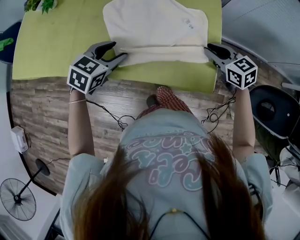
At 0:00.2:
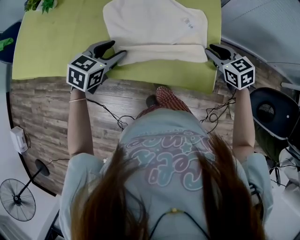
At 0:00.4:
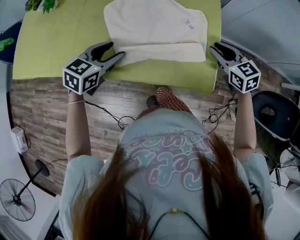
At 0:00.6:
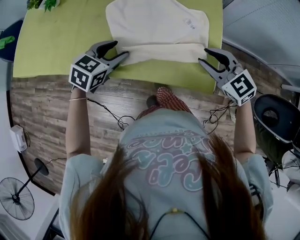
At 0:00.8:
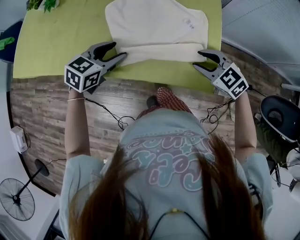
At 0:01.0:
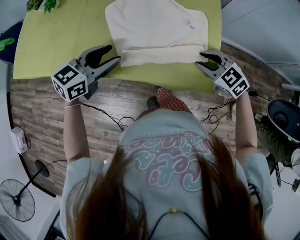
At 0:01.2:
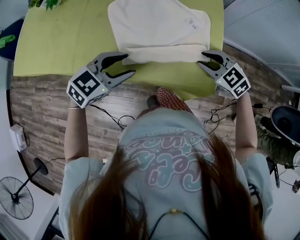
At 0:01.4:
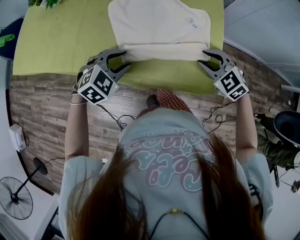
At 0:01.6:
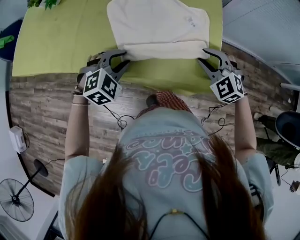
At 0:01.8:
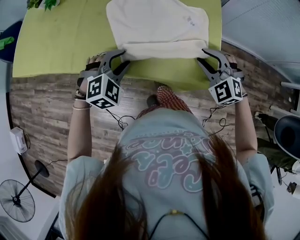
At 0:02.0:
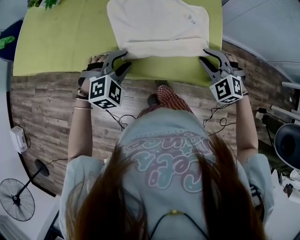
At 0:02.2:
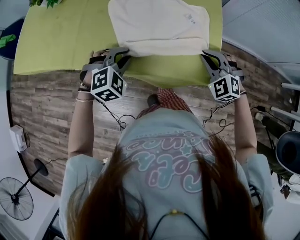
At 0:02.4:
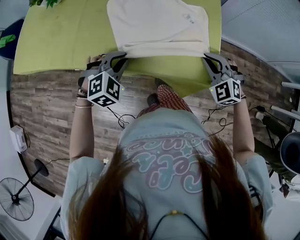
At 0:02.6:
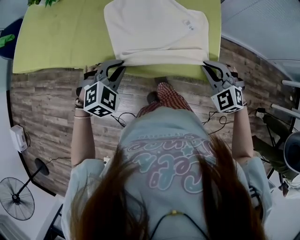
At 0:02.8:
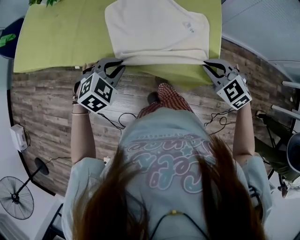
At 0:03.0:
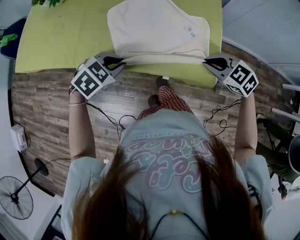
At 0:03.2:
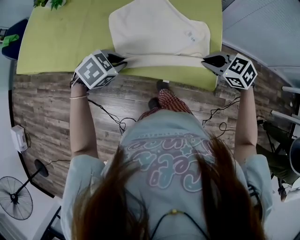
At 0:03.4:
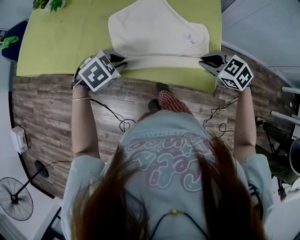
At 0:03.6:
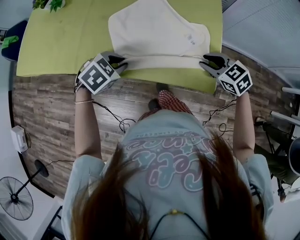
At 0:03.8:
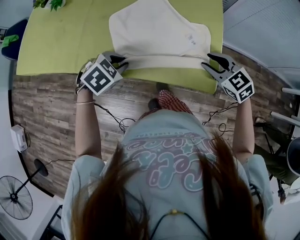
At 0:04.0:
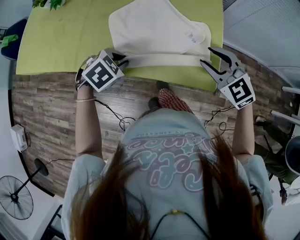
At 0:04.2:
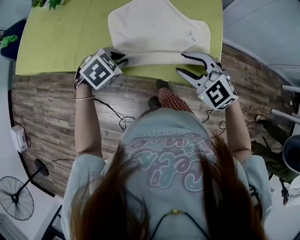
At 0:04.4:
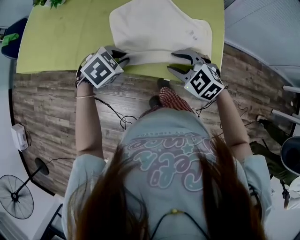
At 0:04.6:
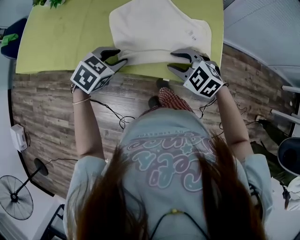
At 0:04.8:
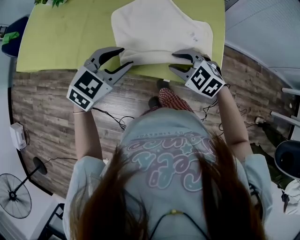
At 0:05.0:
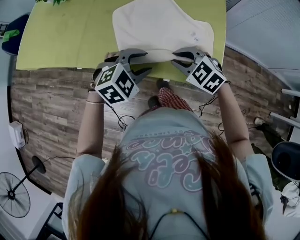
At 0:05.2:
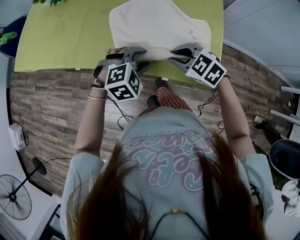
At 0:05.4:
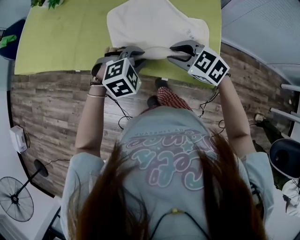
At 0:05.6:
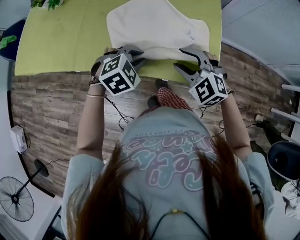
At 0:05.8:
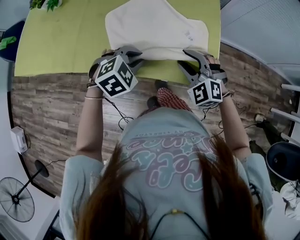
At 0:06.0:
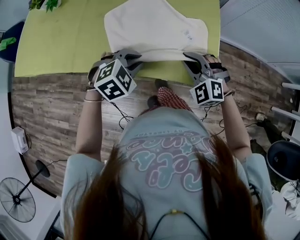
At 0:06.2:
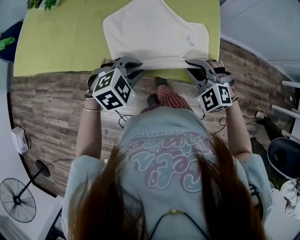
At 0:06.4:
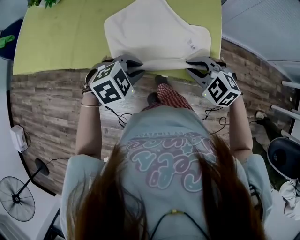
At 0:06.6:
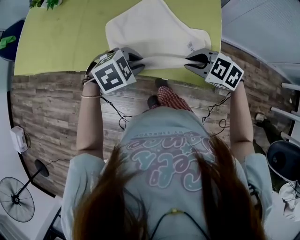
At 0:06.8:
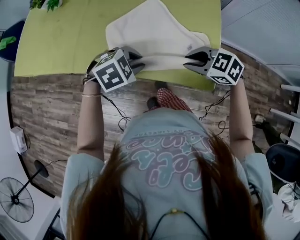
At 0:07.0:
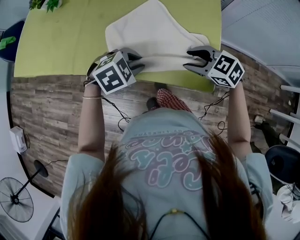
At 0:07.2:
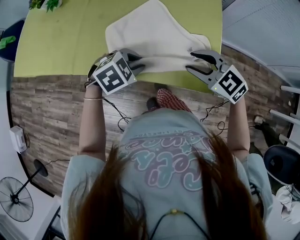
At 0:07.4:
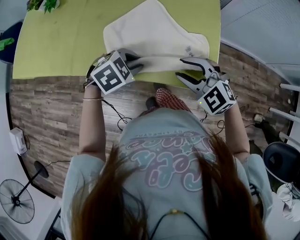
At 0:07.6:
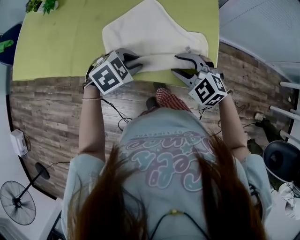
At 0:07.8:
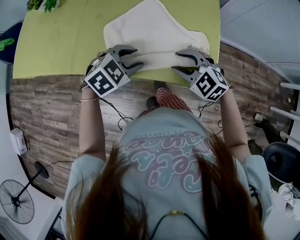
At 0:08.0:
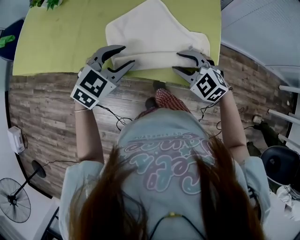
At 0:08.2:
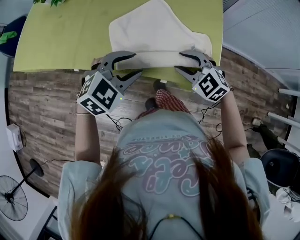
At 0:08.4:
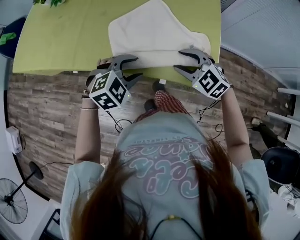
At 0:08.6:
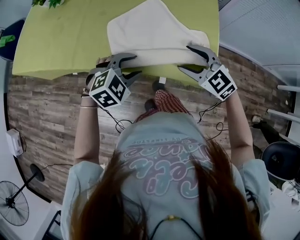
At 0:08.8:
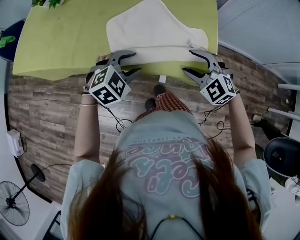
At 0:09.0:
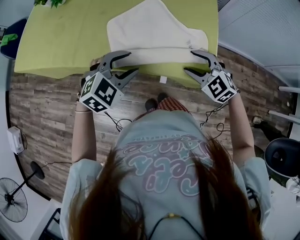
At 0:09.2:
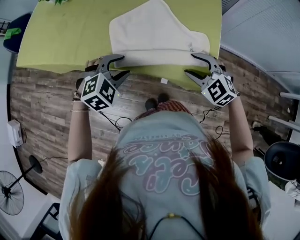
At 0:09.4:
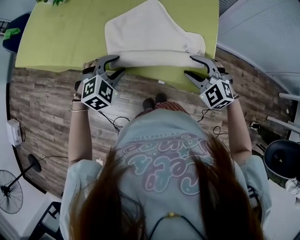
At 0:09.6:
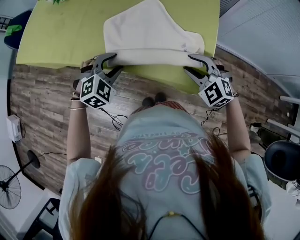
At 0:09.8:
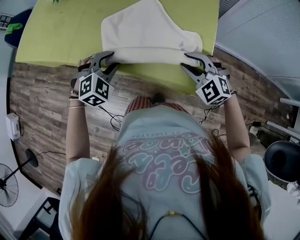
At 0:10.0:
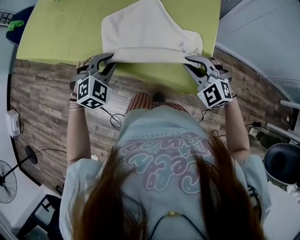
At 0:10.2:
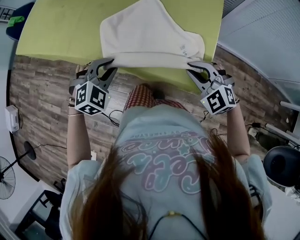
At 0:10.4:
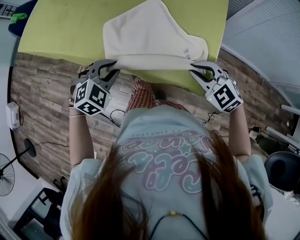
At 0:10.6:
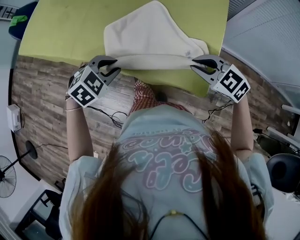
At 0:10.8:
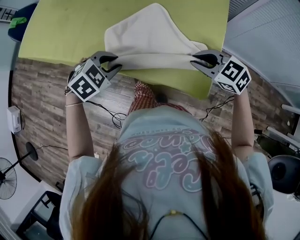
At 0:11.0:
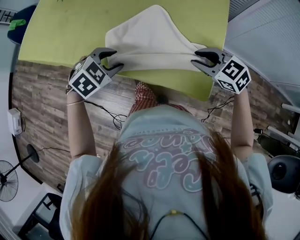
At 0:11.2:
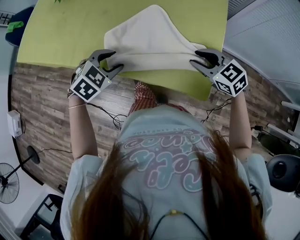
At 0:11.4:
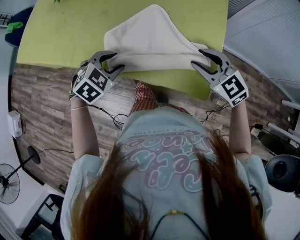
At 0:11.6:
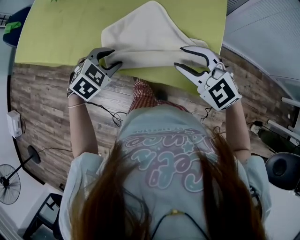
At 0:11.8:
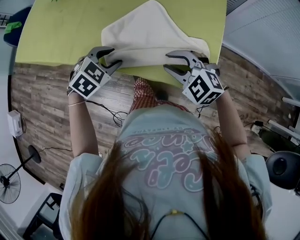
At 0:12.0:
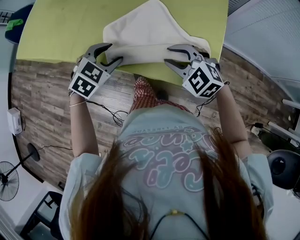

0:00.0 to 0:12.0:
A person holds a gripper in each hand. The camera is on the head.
0:00.0 to 0:01.6: The left gripper moves about 5 cm, turns by roughly 40 degrees, and closes up. Meanwhile the right gripper goes some 5 cm backward, and rotates around the line of its fingers by roughly 50 degrees, counterclockwise from behind.
0:01.6 to 0:03.0: The right gripper turns by approximately 30 degrees, and closes up. Meanwhile the left gripper changes its angle by some 30 degrees.
0:03.0 to 0:04.4: The right gripper moves about 5 cm upward and comes back, and opens its fingers.
0:04.4 to 0:06.0: The grippers both shift to the right by some 5 cm. The right gripper turns by about 30 degrees, and closes up. The left gripper reaches approximately 10 cm upward, then returns, turns by about 20 degrees, and opens, then closes once more.
0:06.0 to 0:07.6: The right gripper swivels approximately 20 degrees, and opens up.
0:07.6 to 0:09.0: The left gripper swings up and down, some 5 cm each way, with 2 reversals, swivels about 20 degrees, and opens up; the right gripper goes about 5 cm to the right.
0:09.0 to 0:10.4: The right gripper closes up, while the left gripper moves some 5 cm, and closes up.
0:10.4 to 0:12.0: The left gripper goes roughly 5 cm forward, and opens up, while the right gripper travels to the left and forward by some 10 cm.

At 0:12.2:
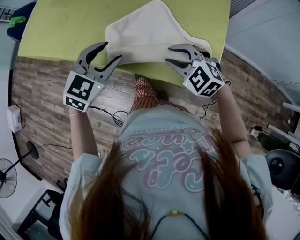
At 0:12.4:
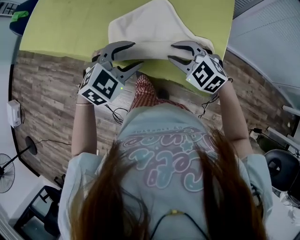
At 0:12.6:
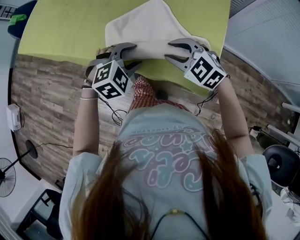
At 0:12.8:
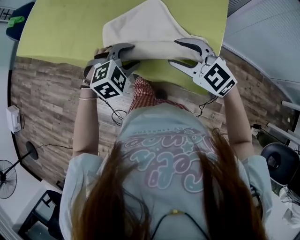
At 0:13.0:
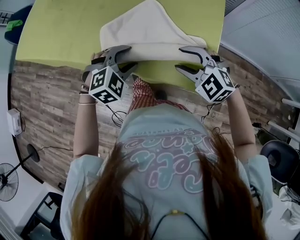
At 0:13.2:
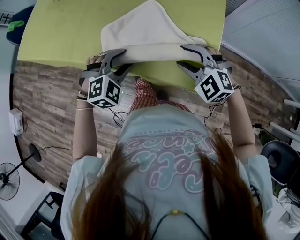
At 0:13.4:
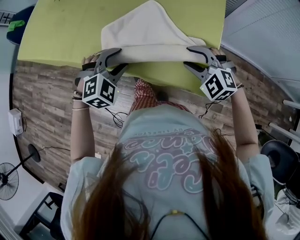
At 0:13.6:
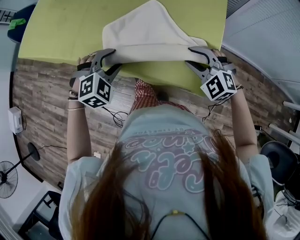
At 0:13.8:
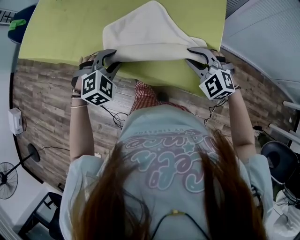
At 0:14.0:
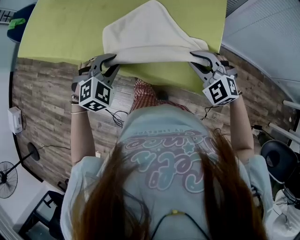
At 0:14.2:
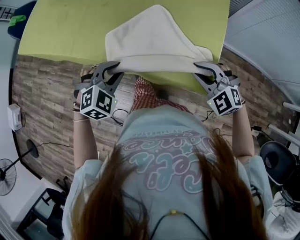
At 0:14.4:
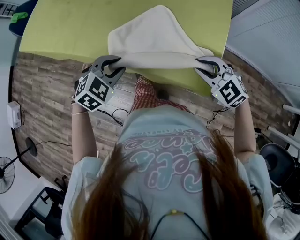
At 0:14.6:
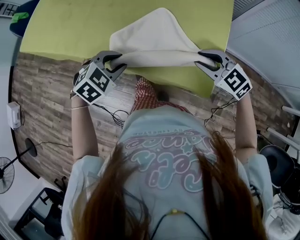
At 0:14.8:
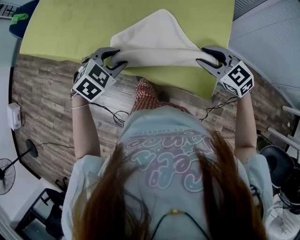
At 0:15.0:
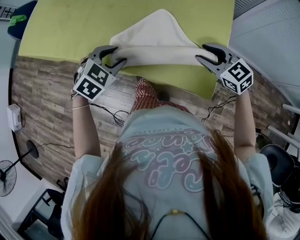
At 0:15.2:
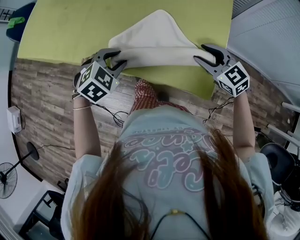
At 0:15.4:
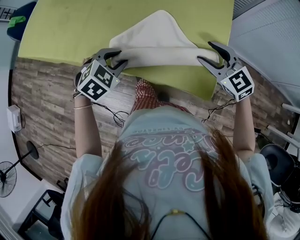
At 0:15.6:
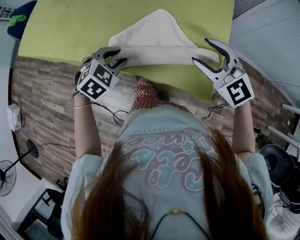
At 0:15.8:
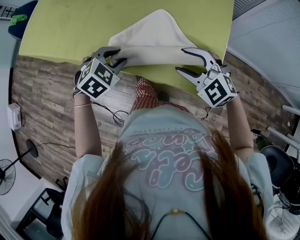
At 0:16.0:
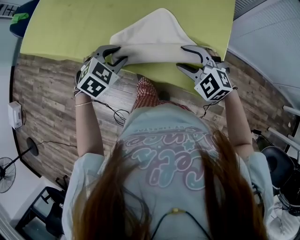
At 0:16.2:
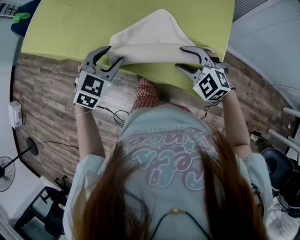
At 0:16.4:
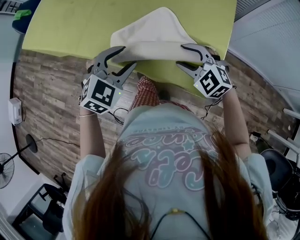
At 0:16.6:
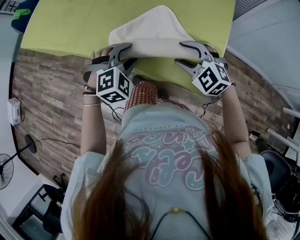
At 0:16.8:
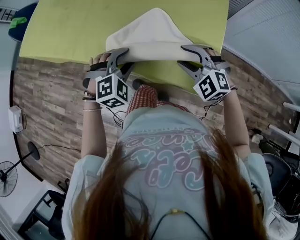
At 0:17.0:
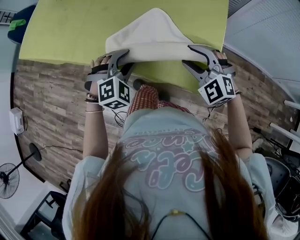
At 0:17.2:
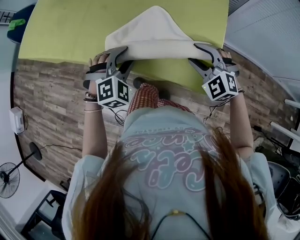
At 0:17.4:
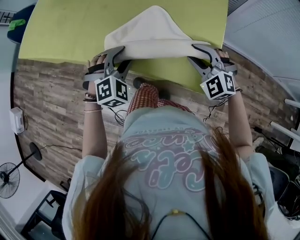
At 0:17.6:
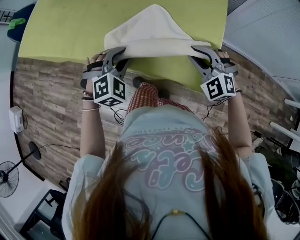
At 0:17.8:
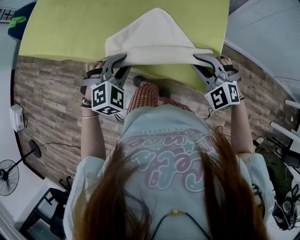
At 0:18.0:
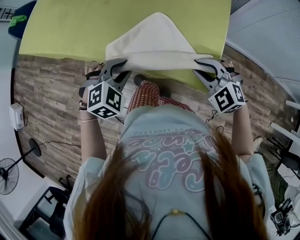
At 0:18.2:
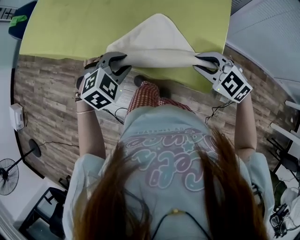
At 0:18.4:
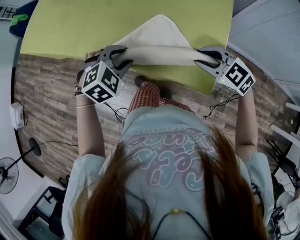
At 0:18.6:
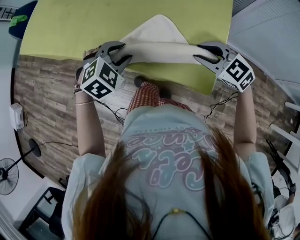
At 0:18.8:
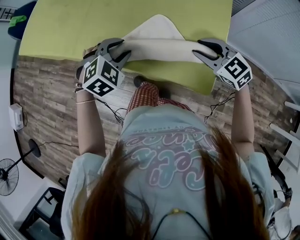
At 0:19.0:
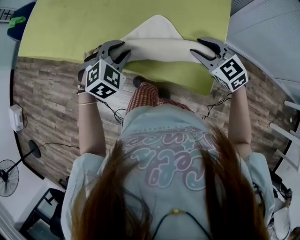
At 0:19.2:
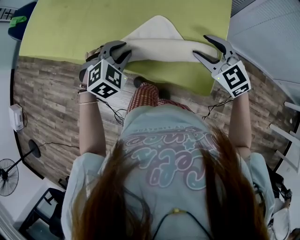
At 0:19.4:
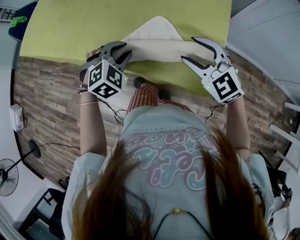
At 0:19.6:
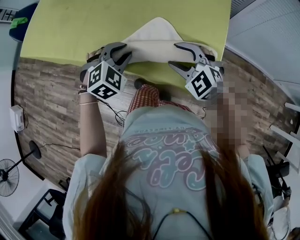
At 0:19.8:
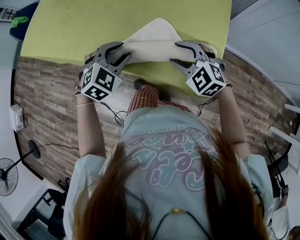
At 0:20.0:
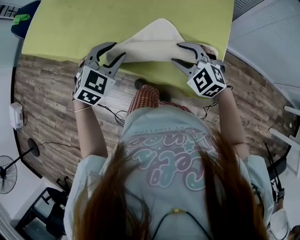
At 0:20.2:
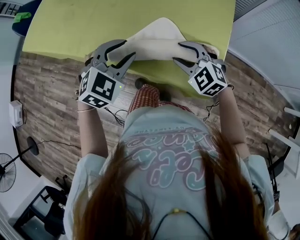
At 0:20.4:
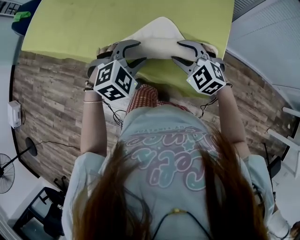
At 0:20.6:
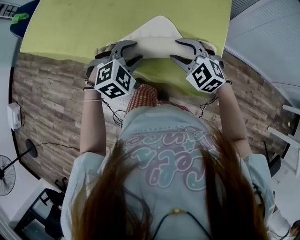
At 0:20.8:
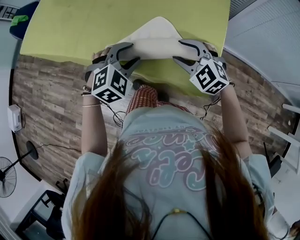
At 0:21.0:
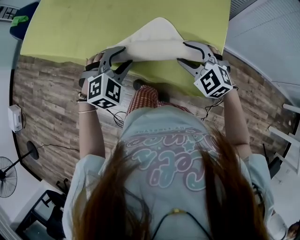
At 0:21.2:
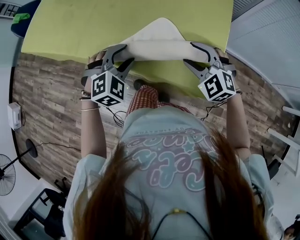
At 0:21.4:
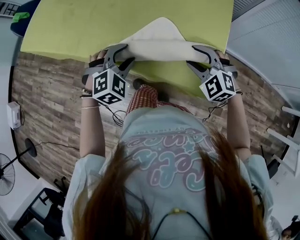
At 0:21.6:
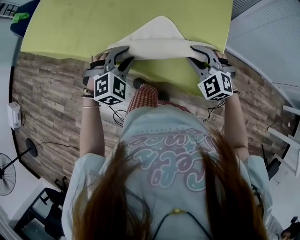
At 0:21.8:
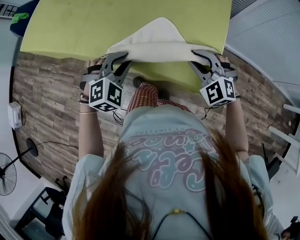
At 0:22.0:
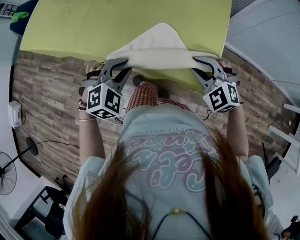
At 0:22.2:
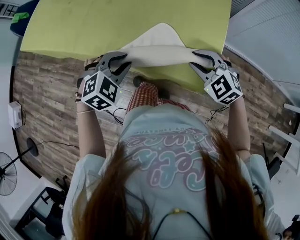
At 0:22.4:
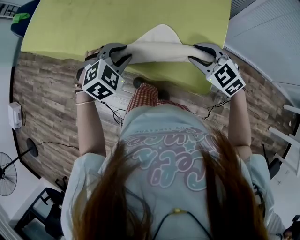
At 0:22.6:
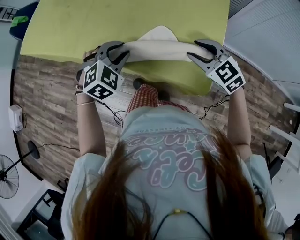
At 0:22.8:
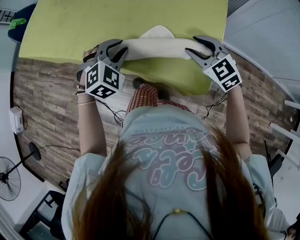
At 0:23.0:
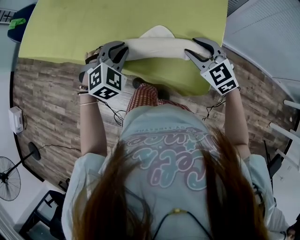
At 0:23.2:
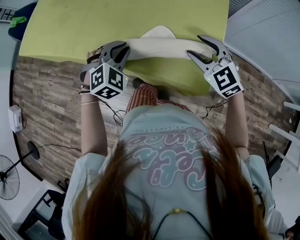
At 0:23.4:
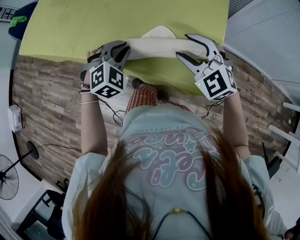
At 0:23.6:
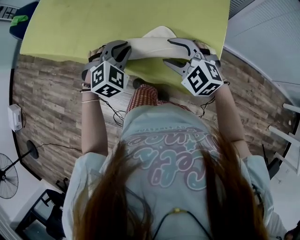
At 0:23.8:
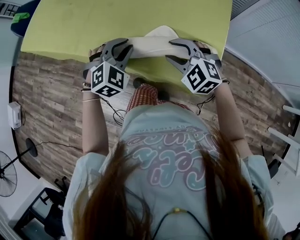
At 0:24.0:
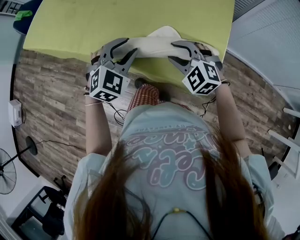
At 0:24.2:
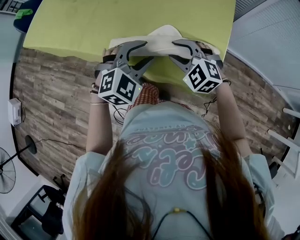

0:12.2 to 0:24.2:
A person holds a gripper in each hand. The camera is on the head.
0:12.2 to 0:13.8: The left gripper is displaced downward by some 10 cm, and turns by roughly 30 degrees, while the right gripper travels to the right by some 10 cm.
0:13.8 to 0:15.2: The right gripper turns by approximately 30 degrees.
0:15.2 to 0:16.6: The right gripper moves to the left, some 10 cm, and rotates roughly 30 degrees.
0:16.6 to 0:18.2: The right gripper moves to the right and backward, some 10 cm, and closes its fingers.
0:18.2 to 0:19.8: The left gripper goes some 5 cm forward. The right gripper moves forward and to the left, about 10 cm, and opens up.
0:19.8 to 0:21.2: The grippers make only small movements.
0:21.2 to 0:22.6: The left gripper travels backward and back again, roughly 5 cm each way, while the right gripper rotates roughly 20 degrees.
0:22.6 to 0:24.2: The right gripper shifts approximately 10 cm to the left, and turns by about 20 degrees. Meanwhile the left gripper shifts some 5 cm to the right.
